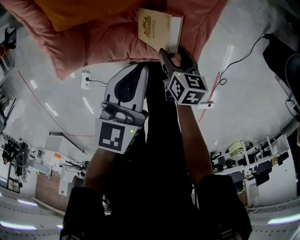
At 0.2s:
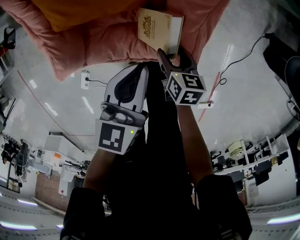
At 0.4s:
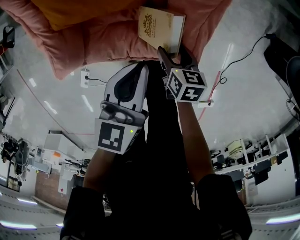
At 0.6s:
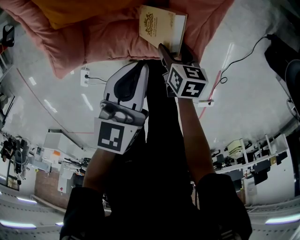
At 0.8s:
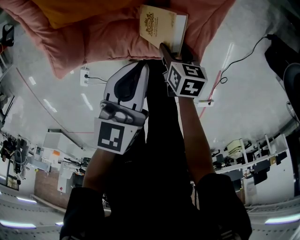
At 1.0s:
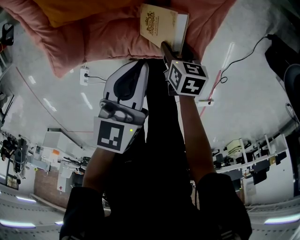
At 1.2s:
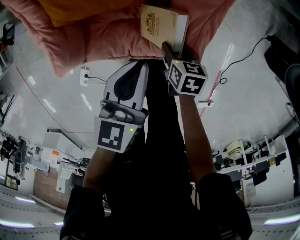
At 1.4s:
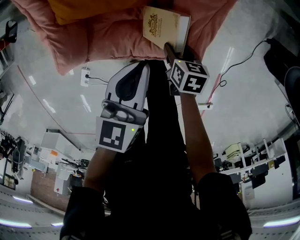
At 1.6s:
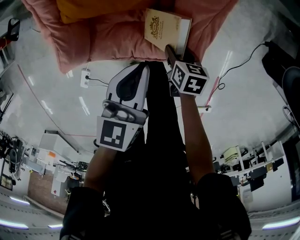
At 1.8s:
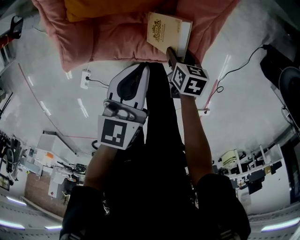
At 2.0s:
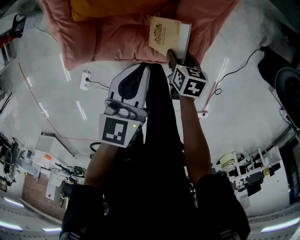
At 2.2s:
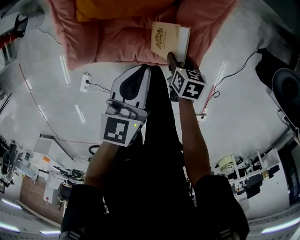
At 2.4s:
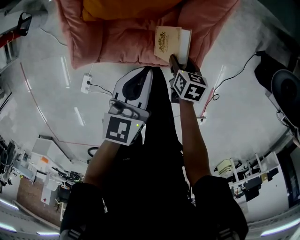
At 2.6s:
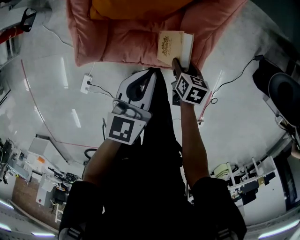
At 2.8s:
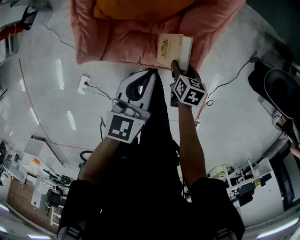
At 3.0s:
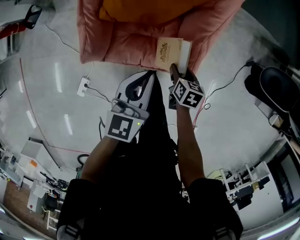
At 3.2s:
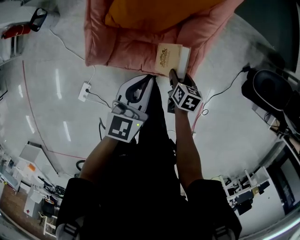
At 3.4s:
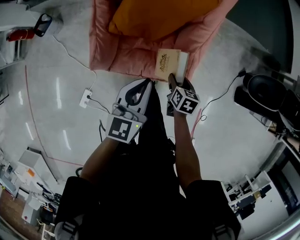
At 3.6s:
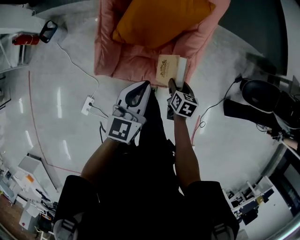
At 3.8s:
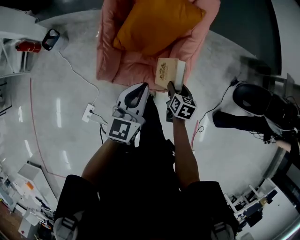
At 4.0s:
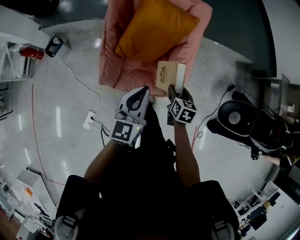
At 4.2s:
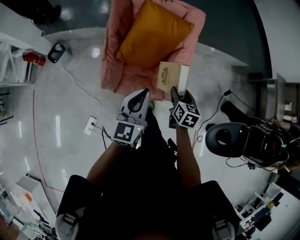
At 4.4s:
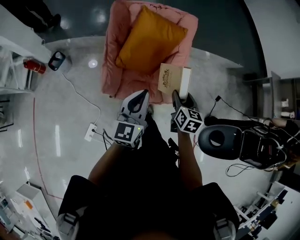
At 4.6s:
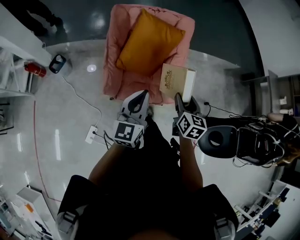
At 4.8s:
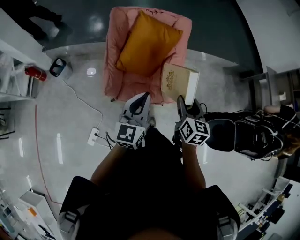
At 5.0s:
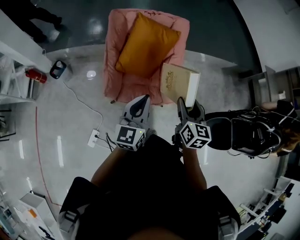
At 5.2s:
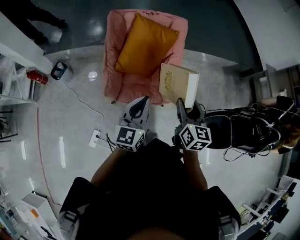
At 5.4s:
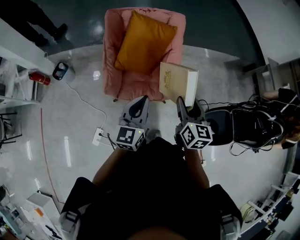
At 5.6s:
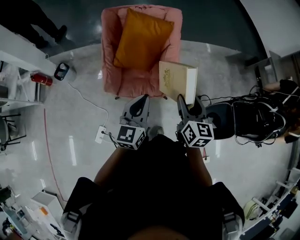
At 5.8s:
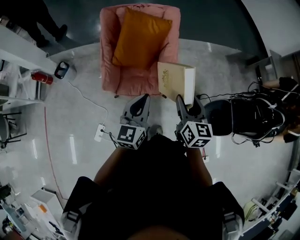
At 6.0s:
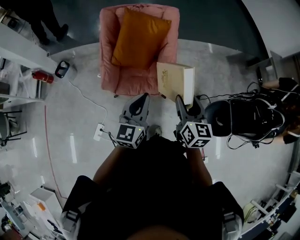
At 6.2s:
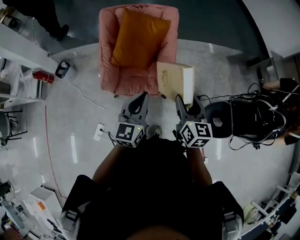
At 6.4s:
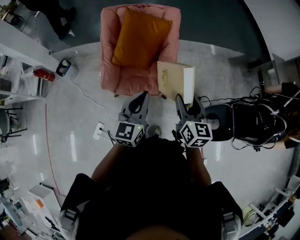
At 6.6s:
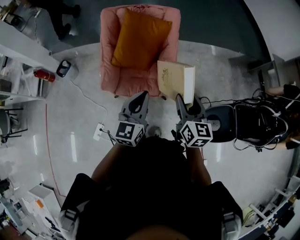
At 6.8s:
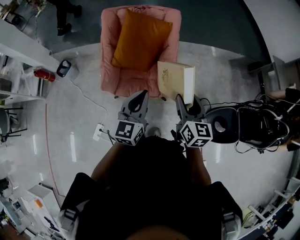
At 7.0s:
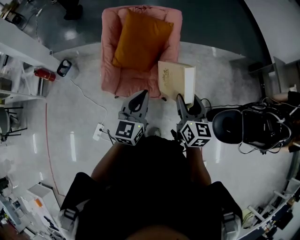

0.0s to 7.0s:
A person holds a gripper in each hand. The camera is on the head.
0.0s to 1.4s: The grippers move only a little.
1.4s to 2.8s: The right gripper travels upward by approximately 10 cm; the left gripper shifts about 10 cm upward and to the left.
2.8s to 4.2s: The left gripper moves upward and backward, some 25 cm, and swivels approximately 20 degrees; the right gripper travels upward by about 30 cm, and changes its angle by about 30 degrees.
4.2s to 5.6s: The left gripper is displaced backward, to the right and upward by about 15 cm. Meanwhile the right gripper goes some 25 cm upward, backward and to the right, and swivels some 20 degrees.
5.6s to 7.0s: There are only small adjustments of the grippers.

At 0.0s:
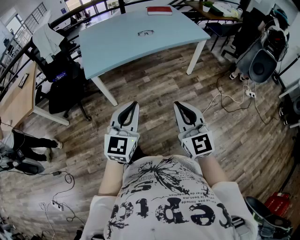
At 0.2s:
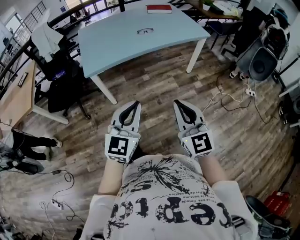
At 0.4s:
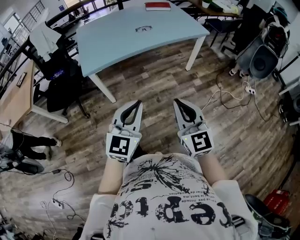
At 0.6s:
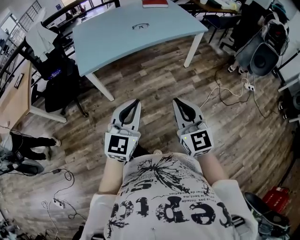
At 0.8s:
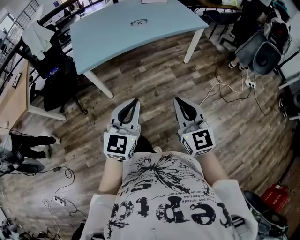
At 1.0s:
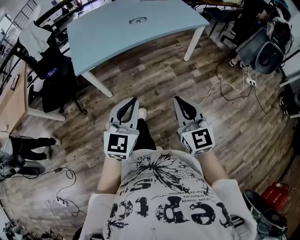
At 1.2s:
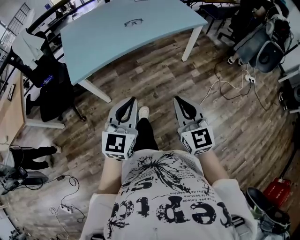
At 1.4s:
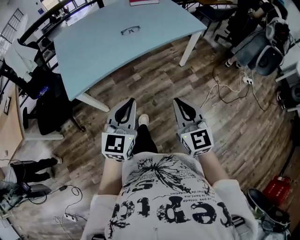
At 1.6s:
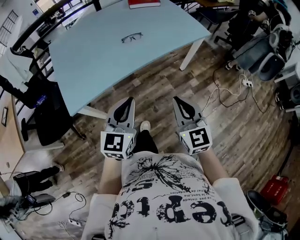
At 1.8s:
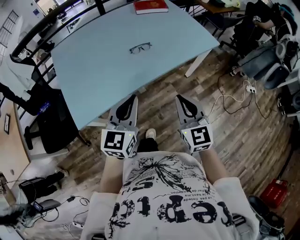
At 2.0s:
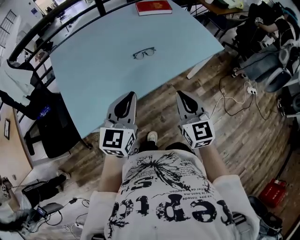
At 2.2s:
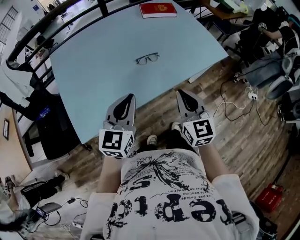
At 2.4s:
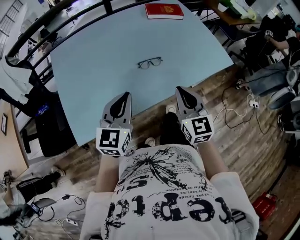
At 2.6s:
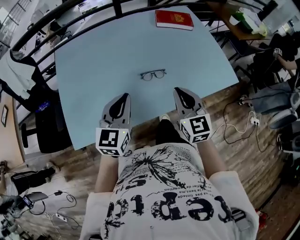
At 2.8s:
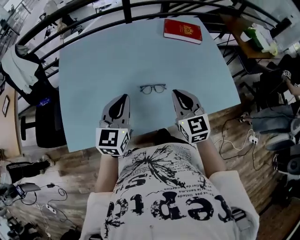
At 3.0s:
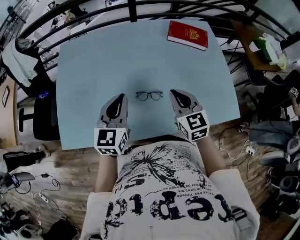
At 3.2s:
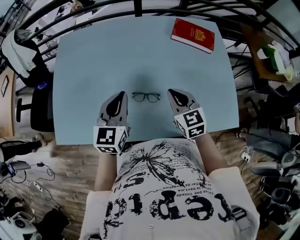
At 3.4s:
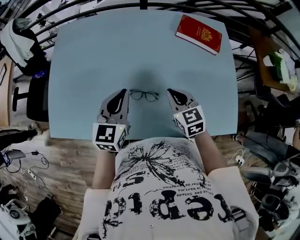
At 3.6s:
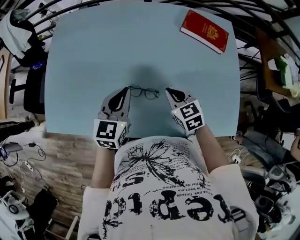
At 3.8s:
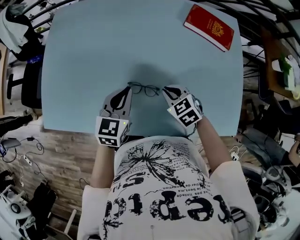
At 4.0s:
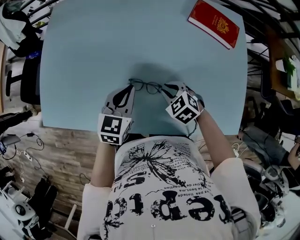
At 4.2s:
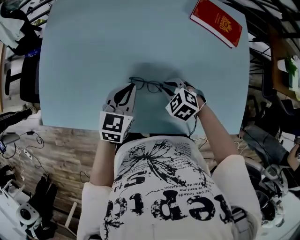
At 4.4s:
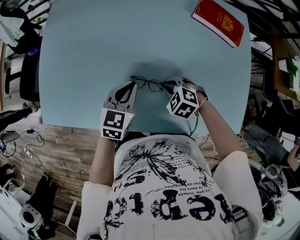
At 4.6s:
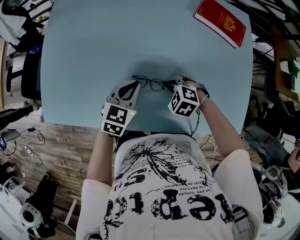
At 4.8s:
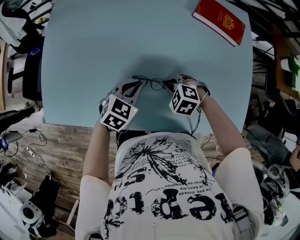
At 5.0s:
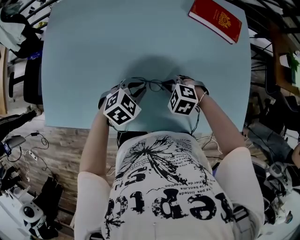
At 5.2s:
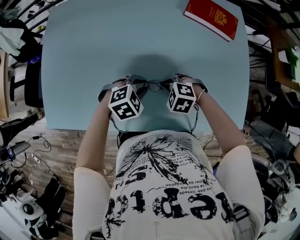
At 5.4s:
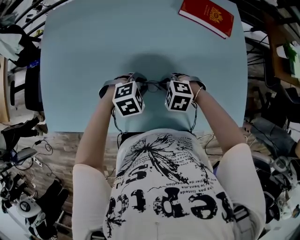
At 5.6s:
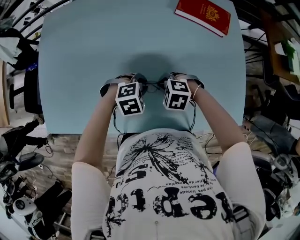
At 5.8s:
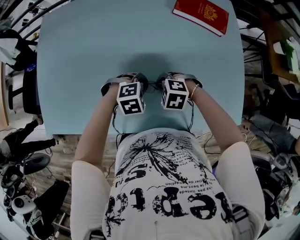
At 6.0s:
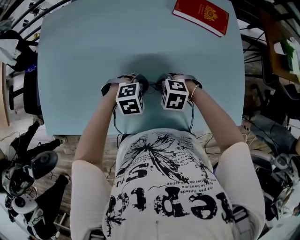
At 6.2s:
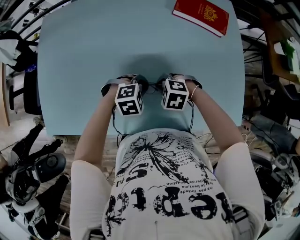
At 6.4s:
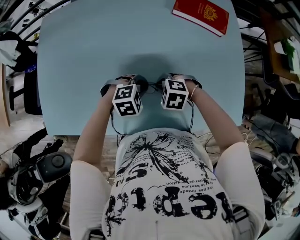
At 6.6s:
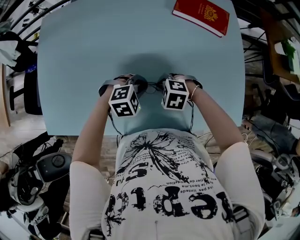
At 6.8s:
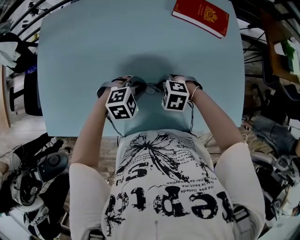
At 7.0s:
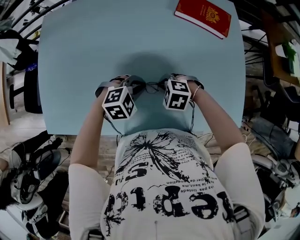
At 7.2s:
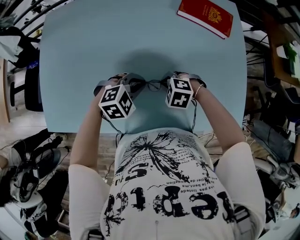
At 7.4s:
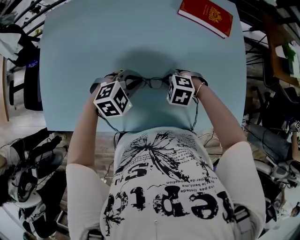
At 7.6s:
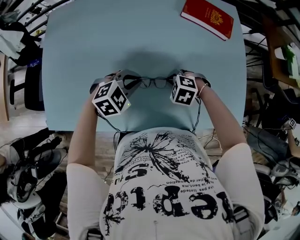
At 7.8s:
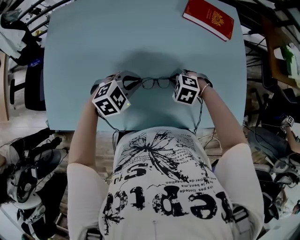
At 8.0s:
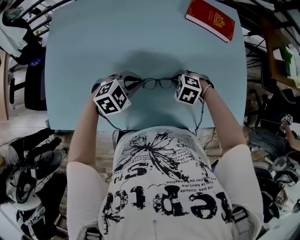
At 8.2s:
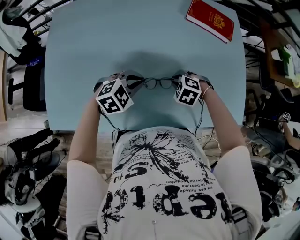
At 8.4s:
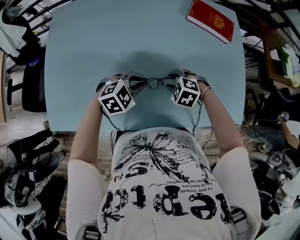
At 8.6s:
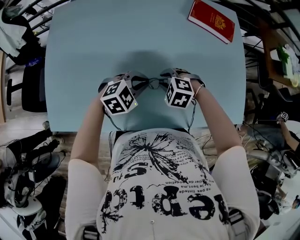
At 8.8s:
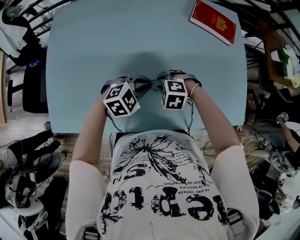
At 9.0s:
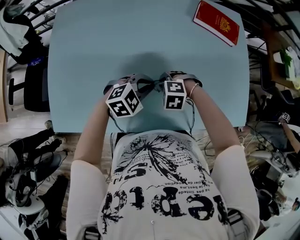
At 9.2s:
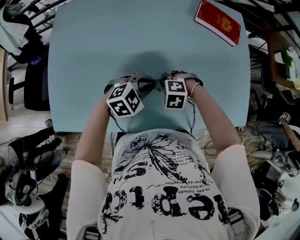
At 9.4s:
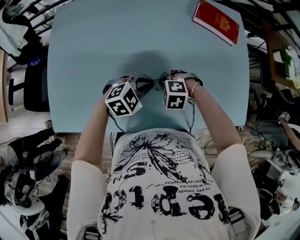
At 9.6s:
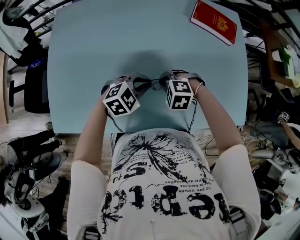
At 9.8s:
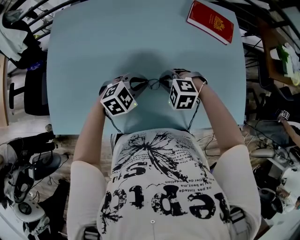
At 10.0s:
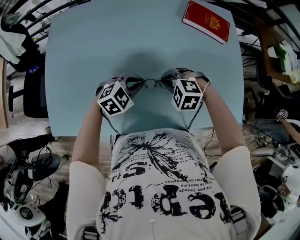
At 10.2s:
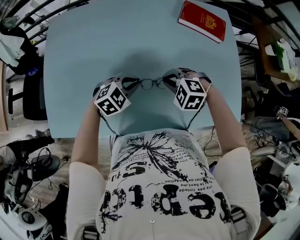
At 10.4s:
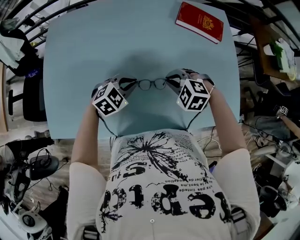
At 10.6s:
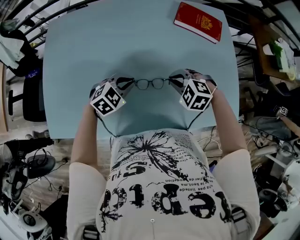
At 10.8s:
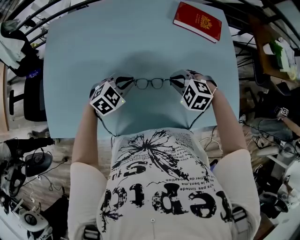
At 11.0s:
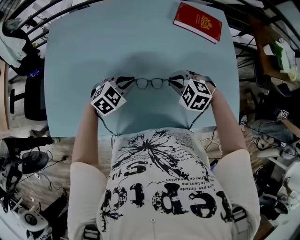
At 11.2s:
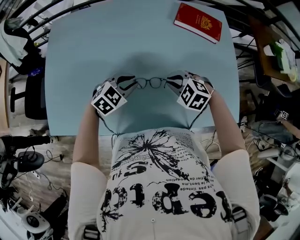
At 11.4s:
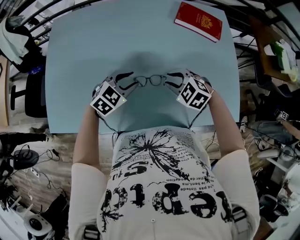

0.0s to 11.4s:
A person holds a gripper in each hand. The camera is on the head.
0.0s to 1.4s: Both grippers move forward, about 20 cm.
1.4s to 2.8s: Both grippers are carried forward, approximately 60 cm. The left gripper changes its angle by roughly 20 degrees.
2.8s to 4.2s: The two grippers go roughly 20 cm downward. The left gripper changes its angle by some 20 degrees; the right gripper tilts its fingers approximately 50 degrees downward.
4.2s to 5.6s: The left gripper moves roughly 15 cm, and points its fingers some 40 degrees further downward.
5.6s to 7.2s: There are only small adjustments of the grippers.
7.2s to 8.6s: The left gripper changes place by approximately 5 cm; the right gripper moves approximately 10 cm, and opens.
8.6s to 10.0s: The right gripper closes up.
10.0s to 11.4s: The right gripper moves to the right, about 5 cm, and opens up. The left gripper opens.

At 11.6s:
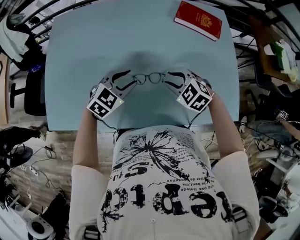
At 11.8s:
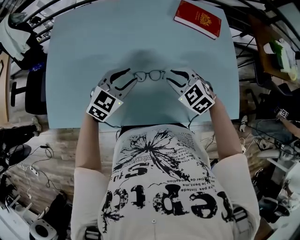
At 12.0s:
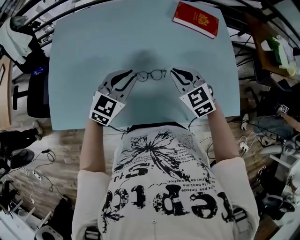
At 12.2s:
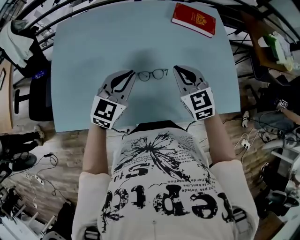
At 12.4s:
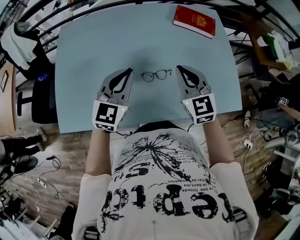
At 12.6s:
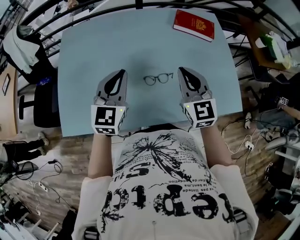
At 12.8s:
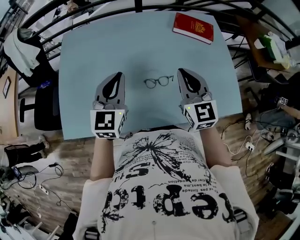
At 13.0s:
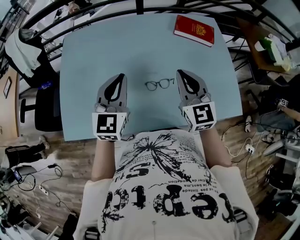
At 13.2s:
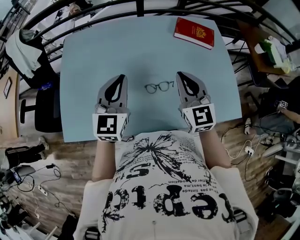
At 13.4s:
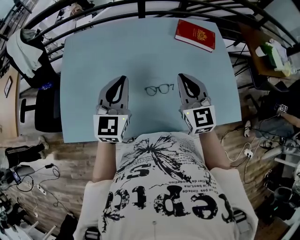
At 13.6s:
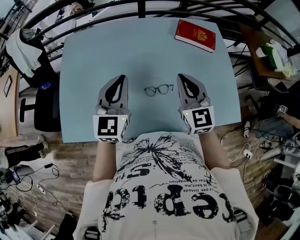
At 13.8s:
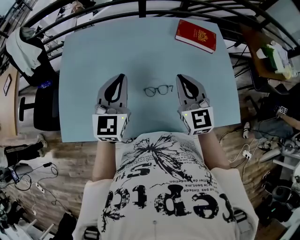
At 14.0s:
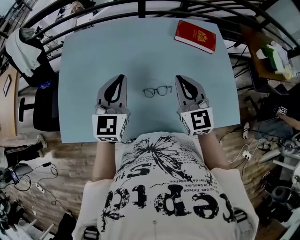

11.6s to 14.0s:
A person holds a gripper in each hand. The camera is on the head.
11.6s to 12.8s: The right gripper goes roughly 20 cm upward, tilts its fingers about 40 degrees upward, and closes its fingers; the left gripper is displaced upward and to the left by some 20 cm, turns by approximately 40 degrees, and closes up.
12.8s to 14.0s: The grippers move only a little.

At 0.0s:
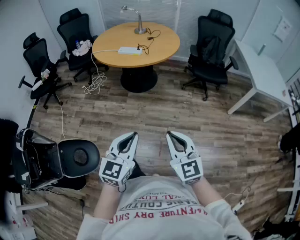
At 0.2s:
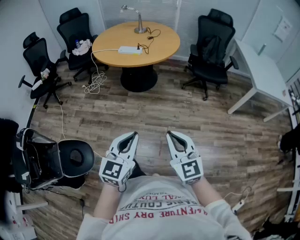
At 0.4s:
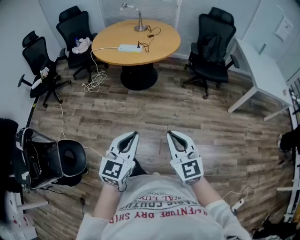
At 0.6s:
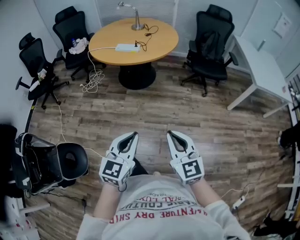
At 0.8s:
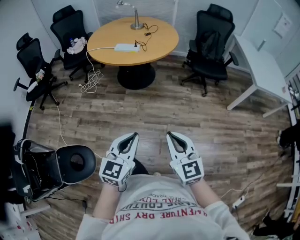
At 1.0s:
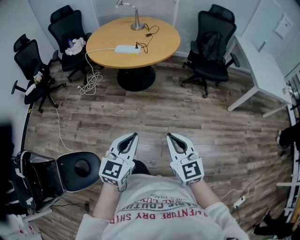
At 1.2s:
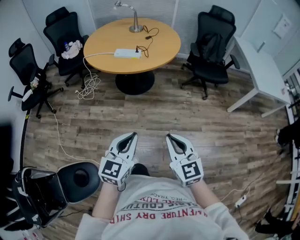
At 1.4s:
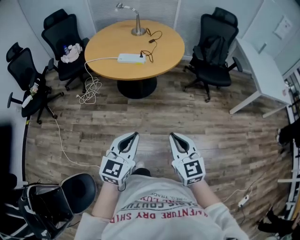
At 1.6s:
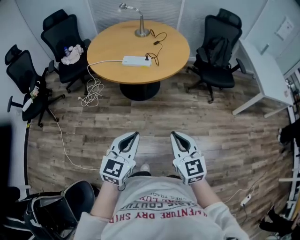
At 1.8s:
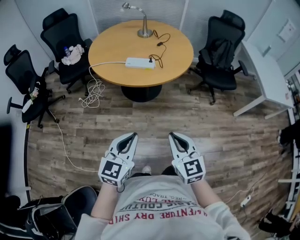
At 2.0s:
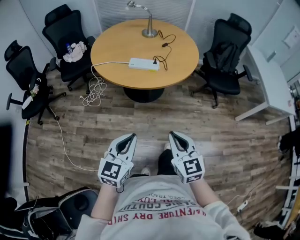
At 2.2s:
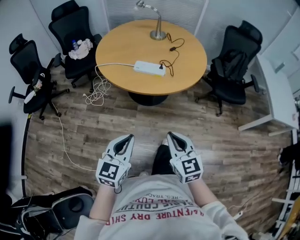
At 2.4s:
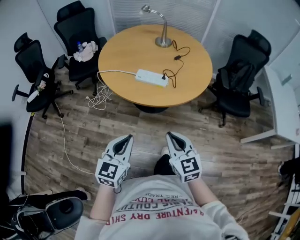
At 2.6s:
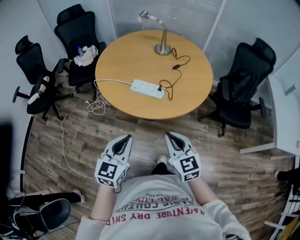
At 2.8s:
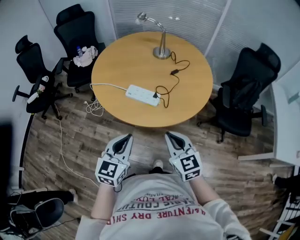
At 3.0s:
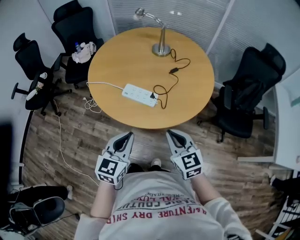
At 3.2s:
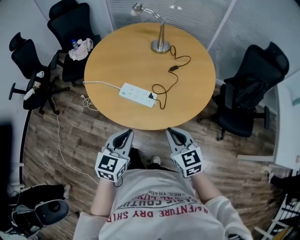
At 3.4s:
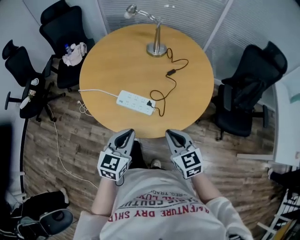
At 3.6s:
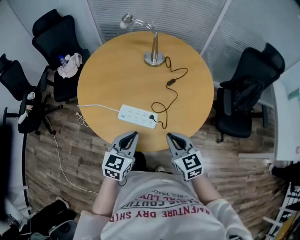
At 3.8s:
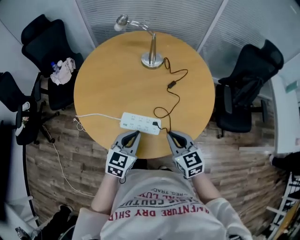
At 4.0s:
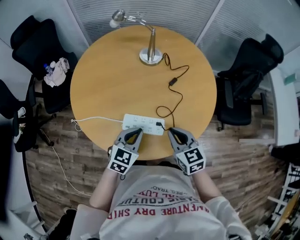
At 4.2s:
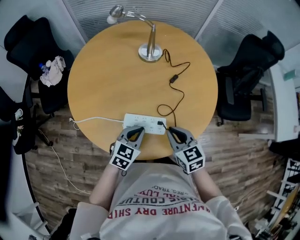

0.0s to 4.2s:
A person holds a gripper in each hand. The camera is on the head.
0.0s to 1.4s: Both grippers travel together forward and to the left, roughly 20 cm.
1.4s to 2.8s: Both grippers travel together forward, roughly 40 cm.
2.8s to 4.2s: Both grippers travel together forward and downward, approximately 30 cm. The right gripper turns by some 20 degrees, while the left gripper swivels about 30 degrees.
